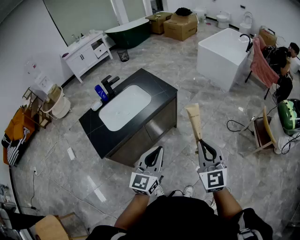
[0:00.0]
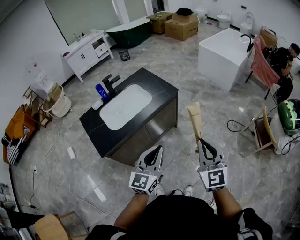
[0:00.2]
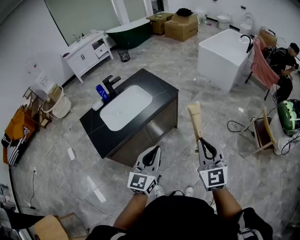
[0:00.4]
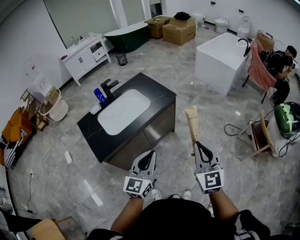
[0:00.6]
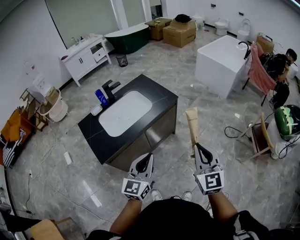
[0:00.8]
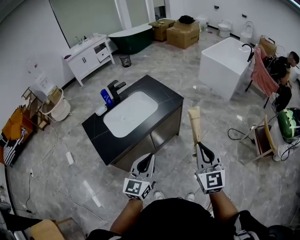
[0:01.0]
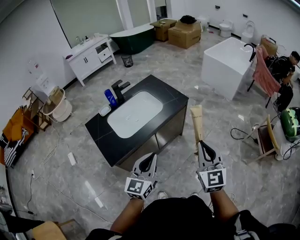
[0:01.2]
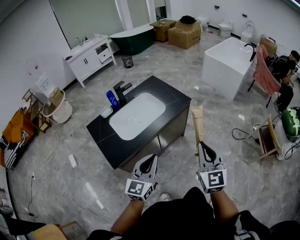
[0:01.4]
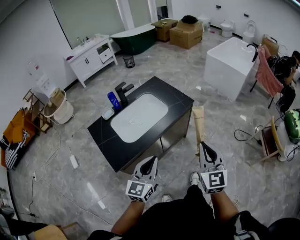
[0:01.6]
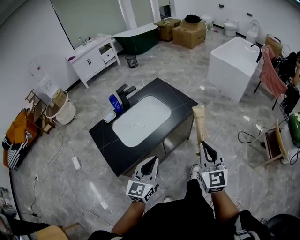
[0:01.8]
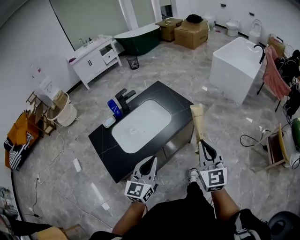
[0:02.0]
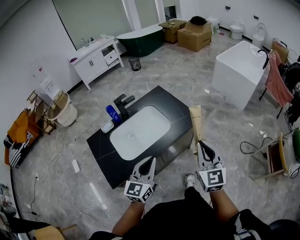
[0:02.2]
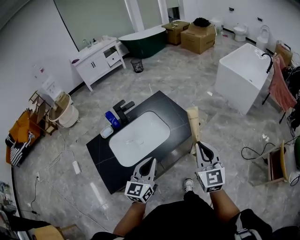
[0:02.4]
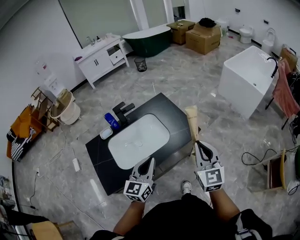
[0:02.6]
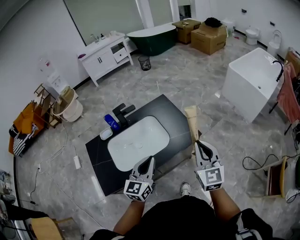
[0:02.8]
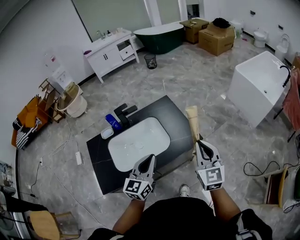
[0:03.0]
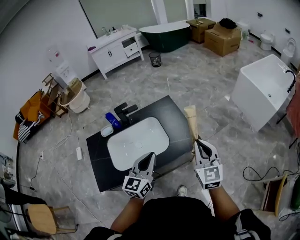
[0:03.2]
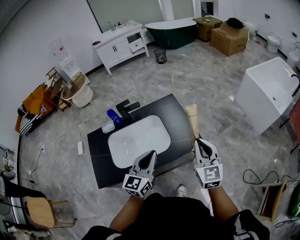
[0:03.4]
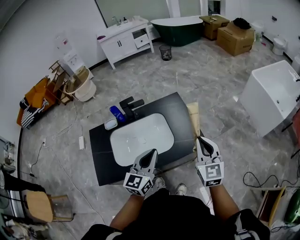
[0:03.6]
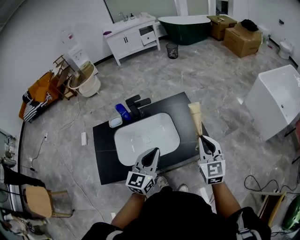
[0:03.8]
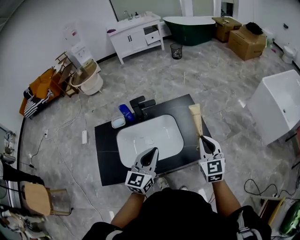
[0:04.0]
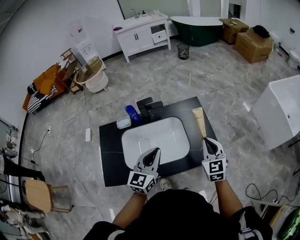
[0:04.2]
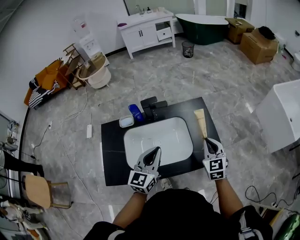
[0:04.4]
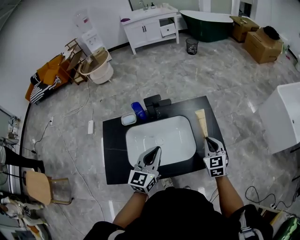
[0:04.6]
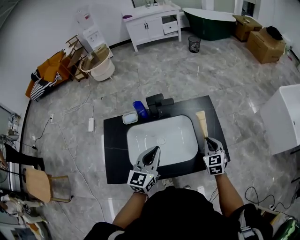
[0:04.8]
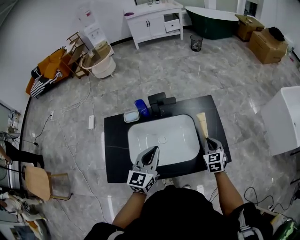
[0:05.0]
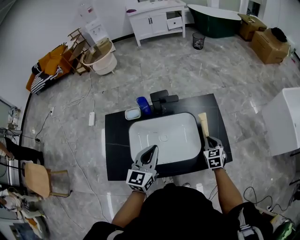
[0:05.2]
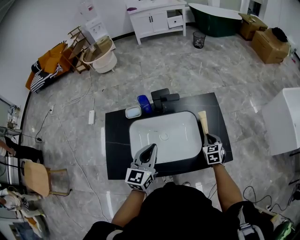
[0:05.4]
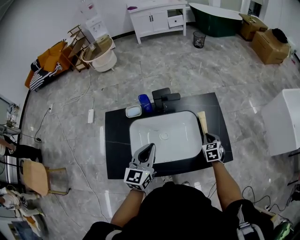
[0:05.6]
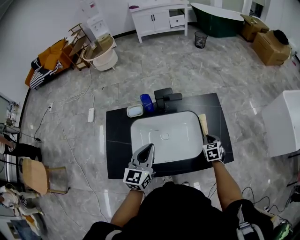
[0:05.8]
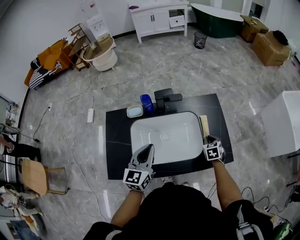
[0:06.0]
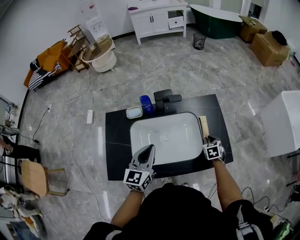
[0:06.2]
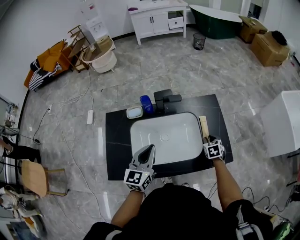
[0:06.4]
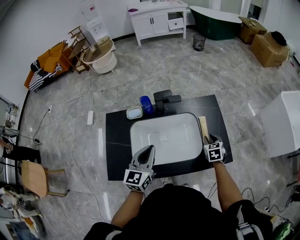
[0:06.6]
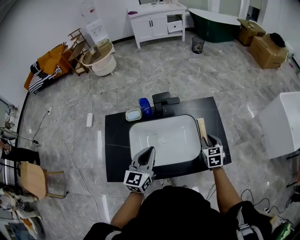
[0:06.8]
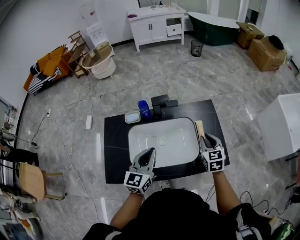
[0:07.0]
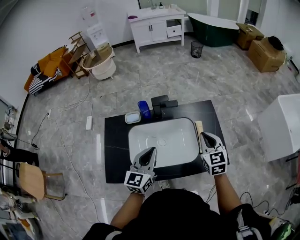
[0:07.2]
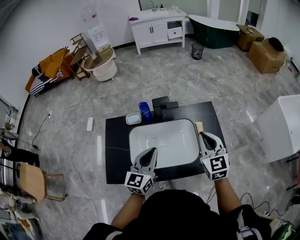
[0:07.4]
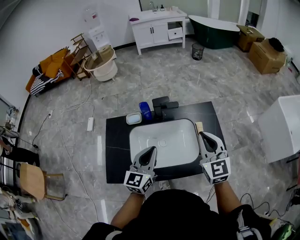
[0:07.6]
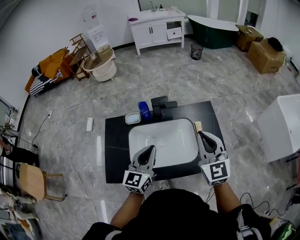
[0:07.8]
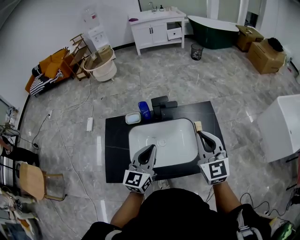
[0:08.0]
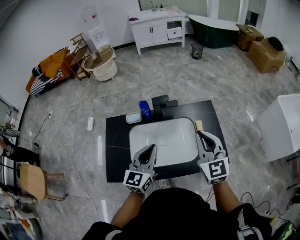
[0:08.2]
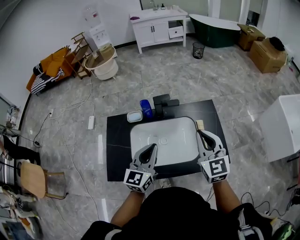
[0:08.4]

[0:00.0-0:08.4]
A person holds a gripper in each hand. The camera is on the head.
0:00.0 to 0:01.4: Both grippers move to the left, about 15 cm.
0:01.4 to 0:02.8: The two grippers go some 30 cm forward.
0:02.8 to 0:04.2: The right gripper shifts approximately 20 cm forward and downward, and changes its angle by roughly 20 degrees. The left gripper moves forward and to the left, approximately 10 cm.
0:04.2 to 0:05.6: The left gripper moves to the left, about 10 cm; the right gripper moves downward and forward, roughly 20 cm, and swivels some 30 degrees.
0:05.6 to 0:07.0: The right gripper shifts about 15 cm upward.
0:07.0 to 0:08.4: The right gripper travels upward and to the left by approximately 15 cm, and swivels roughly 20 degrees.

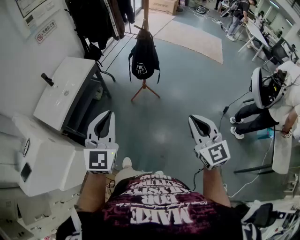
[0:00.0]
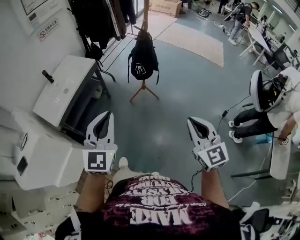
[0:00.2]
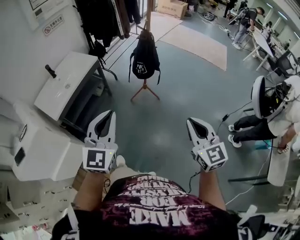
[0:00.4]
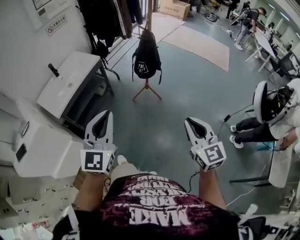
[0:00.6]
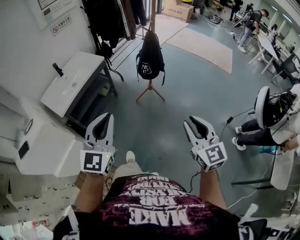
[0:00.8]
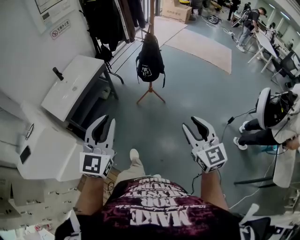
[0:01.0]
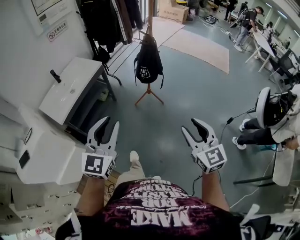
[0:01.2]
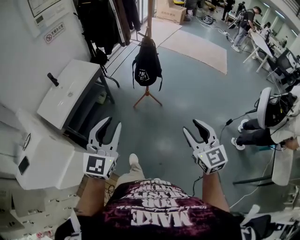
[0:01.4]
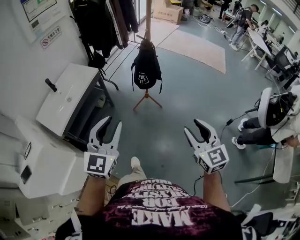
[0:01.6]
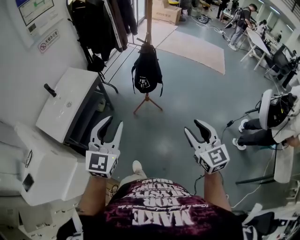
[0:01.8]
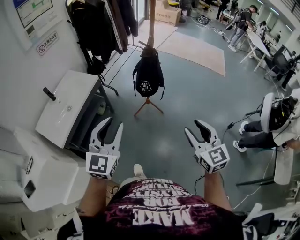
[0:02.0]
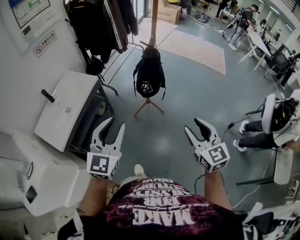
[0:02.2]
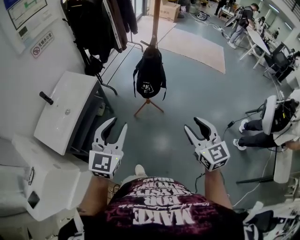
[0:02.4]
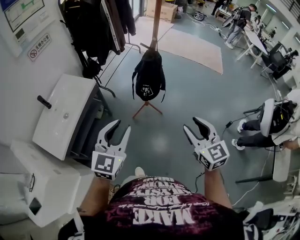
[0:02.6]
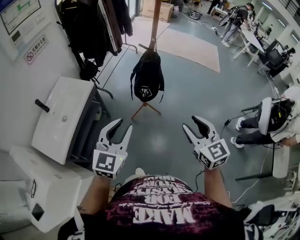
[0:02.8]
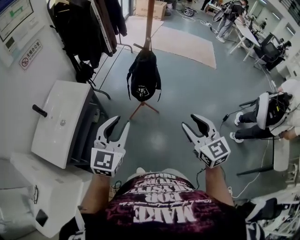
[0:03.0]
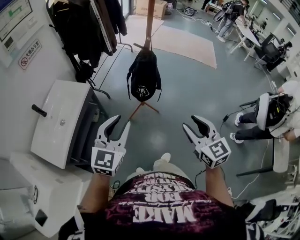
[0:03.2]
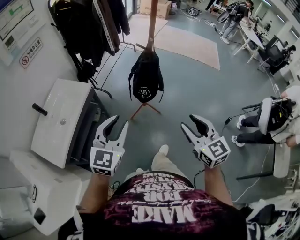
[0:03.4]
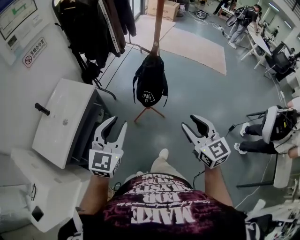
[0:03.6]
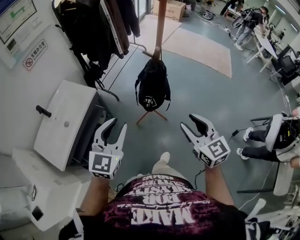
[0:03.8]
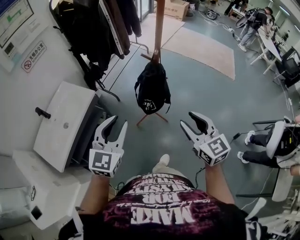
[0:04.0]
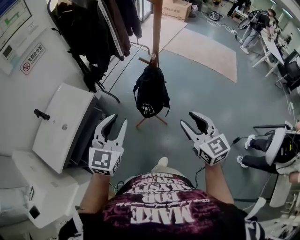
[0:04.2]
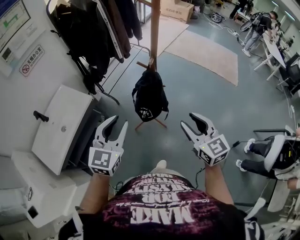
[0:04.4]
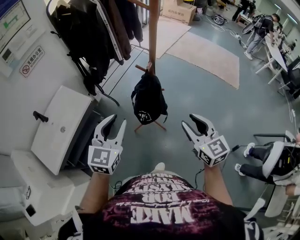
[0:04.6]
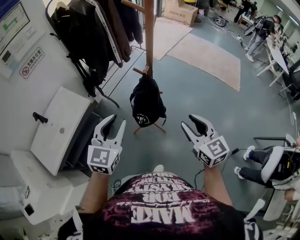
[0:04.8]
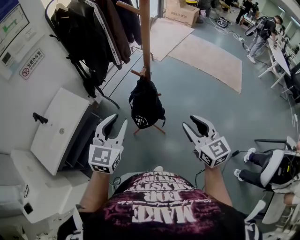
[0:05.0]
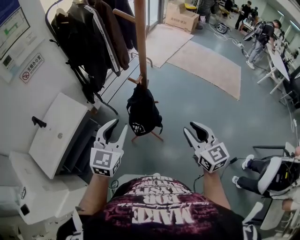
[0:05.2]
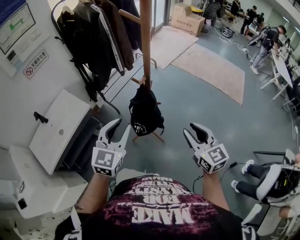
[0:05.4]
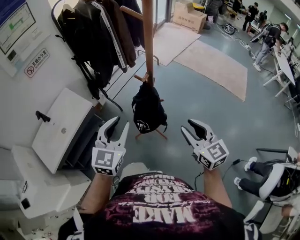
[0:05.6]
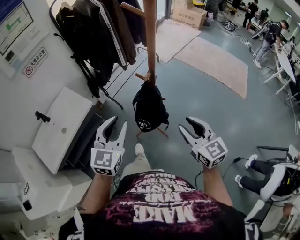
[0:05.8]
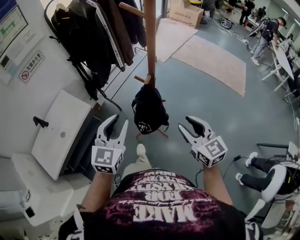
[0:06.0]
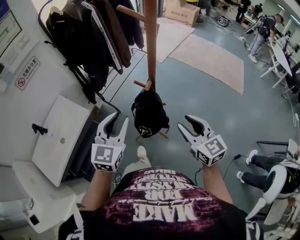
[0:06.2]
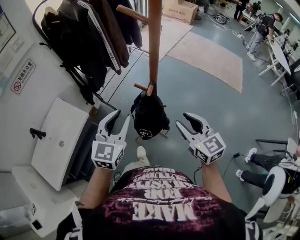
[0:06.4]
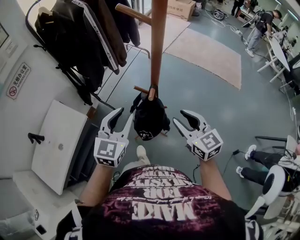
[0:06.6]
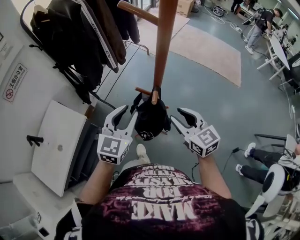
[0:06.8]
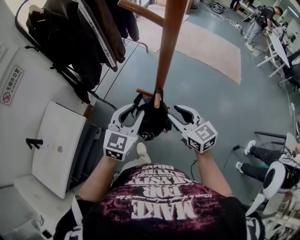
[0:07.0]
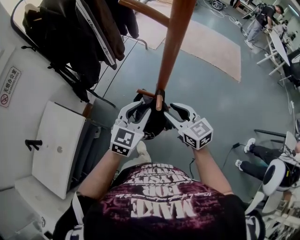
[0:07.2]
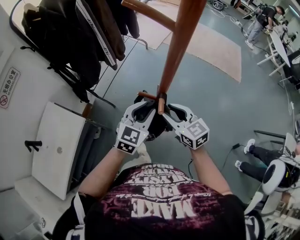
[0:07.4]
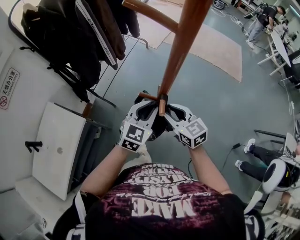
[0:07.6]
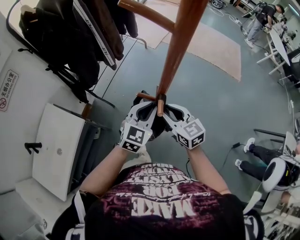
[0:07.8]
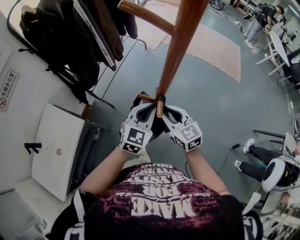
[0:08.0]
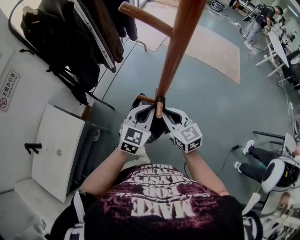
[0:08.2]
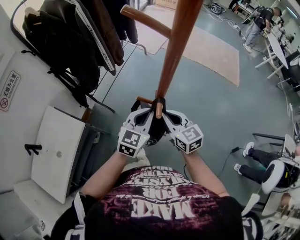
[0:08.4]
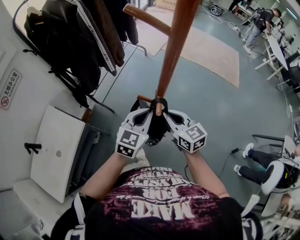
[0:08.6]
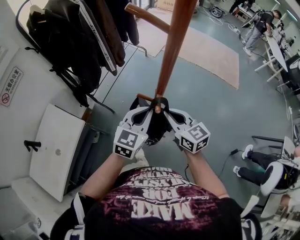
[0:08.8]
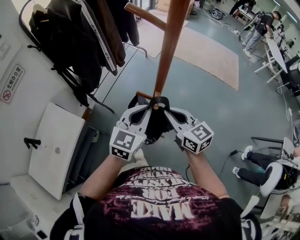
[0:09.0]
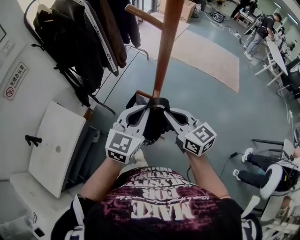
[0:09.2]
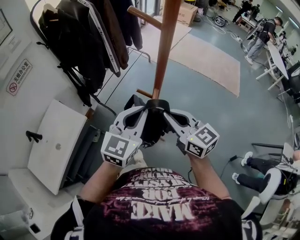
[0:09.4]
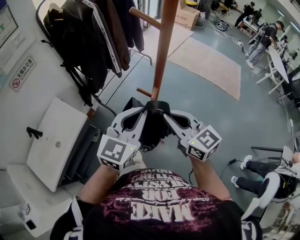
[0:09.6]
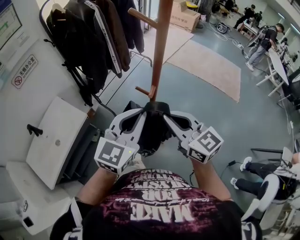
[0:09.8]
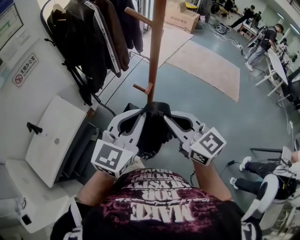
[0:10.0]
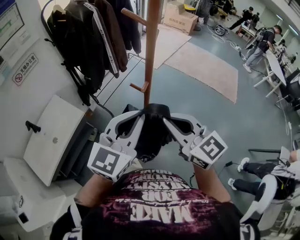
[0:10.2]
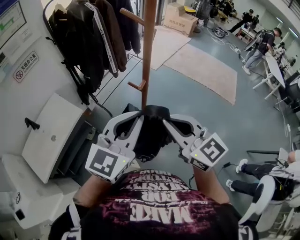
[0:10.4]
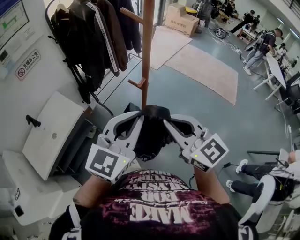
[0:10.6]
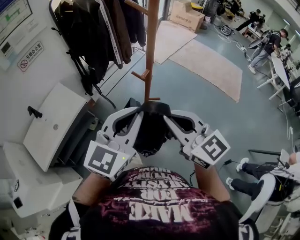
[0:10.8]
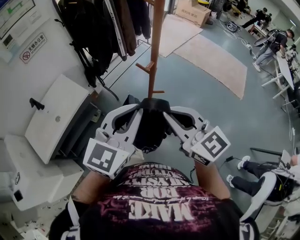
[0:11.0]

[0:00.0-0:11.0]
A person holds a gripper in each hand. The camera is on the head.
0:00.0 to 0:01.6: The left gripper travels backward and back again, roughly 10 cm each way, and opens up. Meanwhile the right gripper opens.
0:01.6 to 0:03.2: The right gripper shifts approximately 20 cm forward and to the left. Meanwhile the left gripper heads forward, covering about 20 cm.
0:03.2 to 0:04.8: The grippers both shift forward and to the right by approximately 25 cm.
0:04.8 to 0:06.2: Both grippers travel together forward, roughly 10 cm.
0:06.2 to 0:07.8: The right gripper travels forward, downward and to the left by about 20 cm. The left gripper is displaced forward, downward and to the right by roughly 20 cm, and swivels approximately 20 degrees.
0:07.8 to 0:09.4: Both grippers move upward and backward, about 15 cm. The right gripper closes up.
0:09.4 to 0:11.0: The grippers both shift backward and upward by about 15 cm.

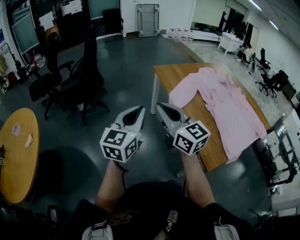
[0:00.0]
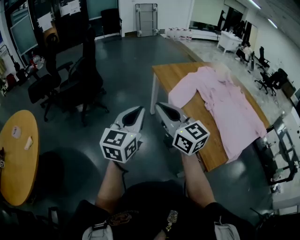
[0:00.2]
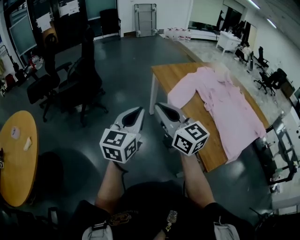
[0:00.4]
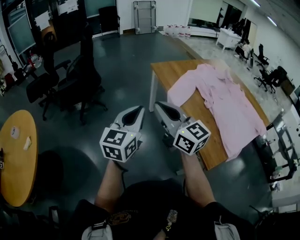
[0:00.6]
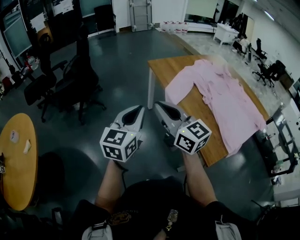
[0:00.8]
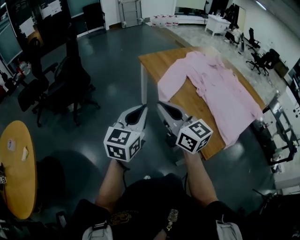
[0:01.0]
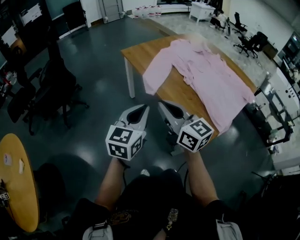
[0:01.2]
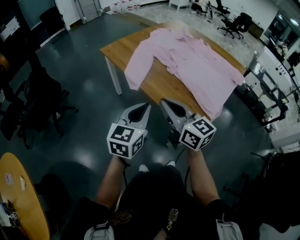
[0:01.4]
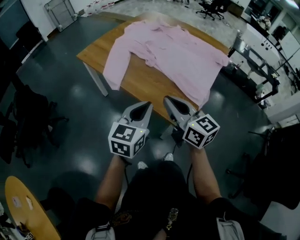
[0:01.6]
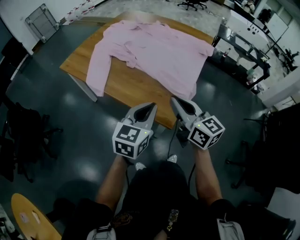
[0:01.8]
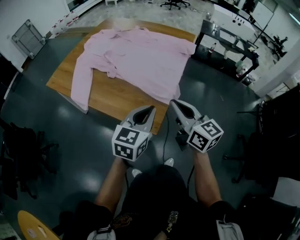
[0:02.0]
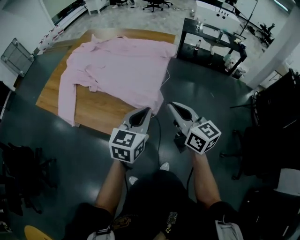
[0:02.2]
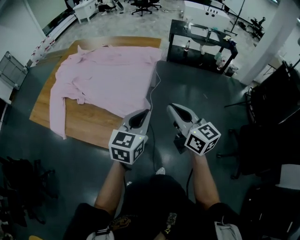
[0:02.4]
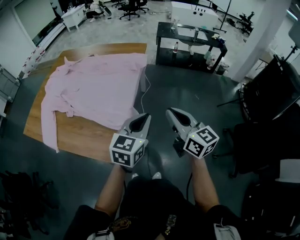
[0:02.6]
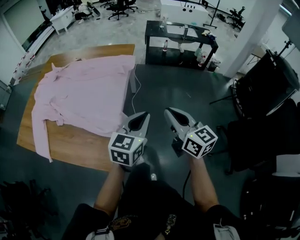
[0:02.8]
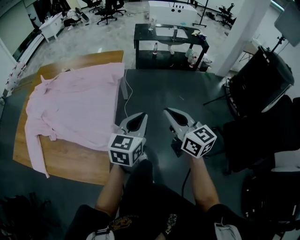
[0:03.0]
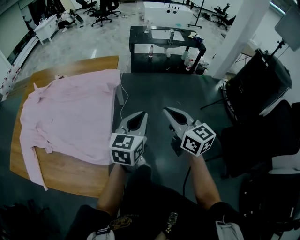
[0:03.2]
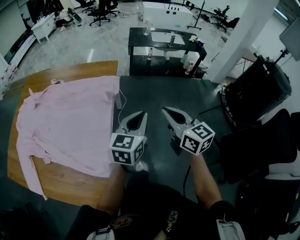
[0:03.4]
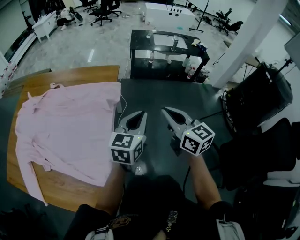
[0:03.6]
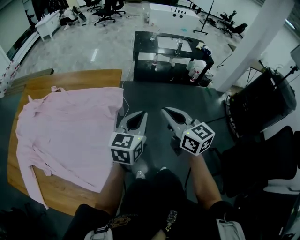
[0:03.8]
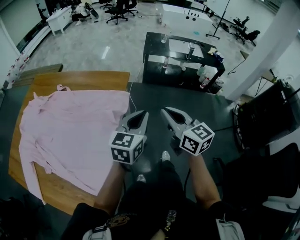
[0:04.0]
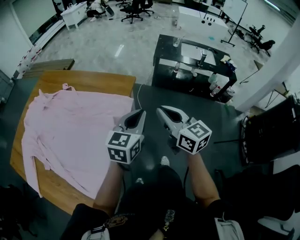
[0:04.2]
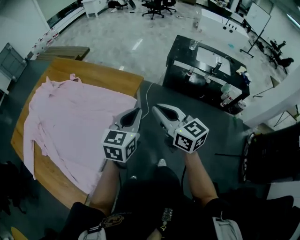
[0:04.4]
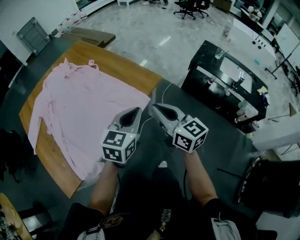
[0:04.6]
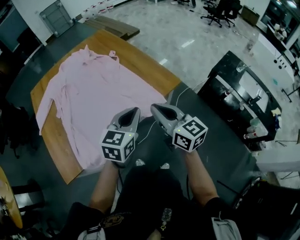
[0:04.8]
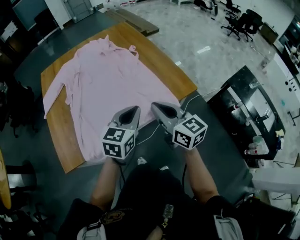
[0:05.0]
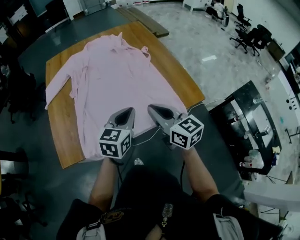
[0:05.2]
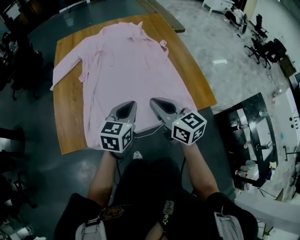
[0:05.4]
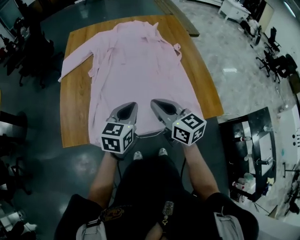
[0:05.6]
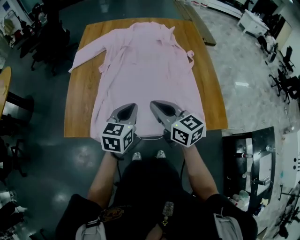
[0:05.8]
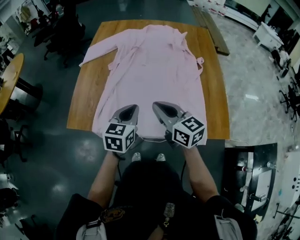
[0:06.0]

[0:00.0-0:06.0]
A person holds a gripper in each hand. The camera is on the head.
0:00.0 to 0:01.6: The right gripper changes place by roughly 30 cm, and turns by about 40 degrees; the left gripper changes place by roughly 30 cm, and rotates approximately 40 degrees.
0:01.6 to 0:03.0: The two grippers travel together, about 50 cm. The left gripper rotates approximately 30 degrees. The right gripper swivels about 40 degrees.
0:03.0 to 0:04.4: The right gripper moves some 40 cm, and rotates roughly 30 degrees. The left gripper moves some 40 cm, and changes its angle by about 20 degrees.
0:04.4 to 0:06.0: The right gripper ends up about 35 cm from where it was, and turns by roughly 70 degrees. The left gripper ends up roughly 35 cm from where it was, and turns by about 70 degrees.
